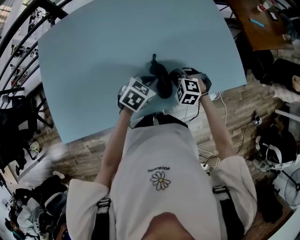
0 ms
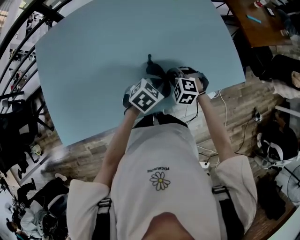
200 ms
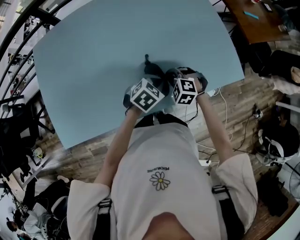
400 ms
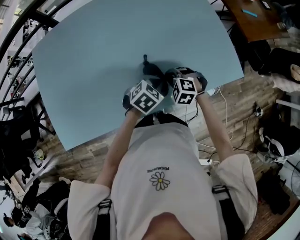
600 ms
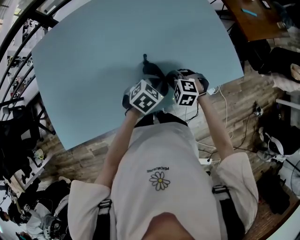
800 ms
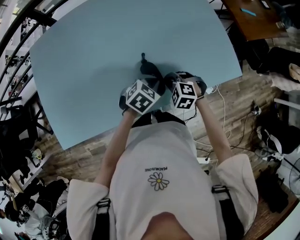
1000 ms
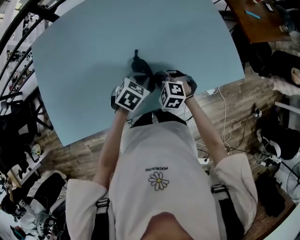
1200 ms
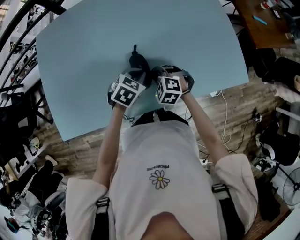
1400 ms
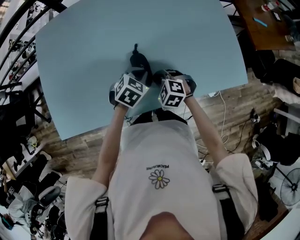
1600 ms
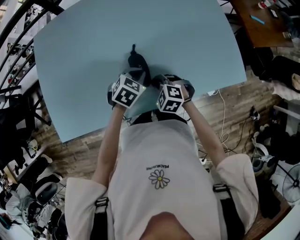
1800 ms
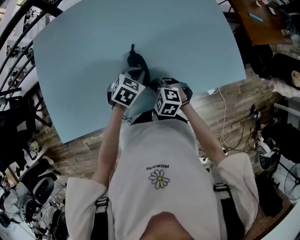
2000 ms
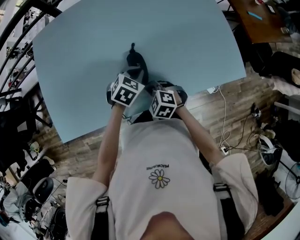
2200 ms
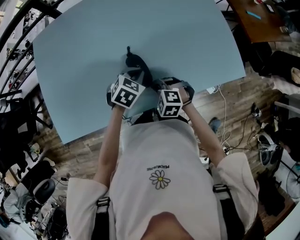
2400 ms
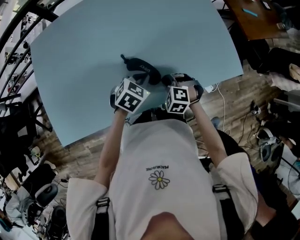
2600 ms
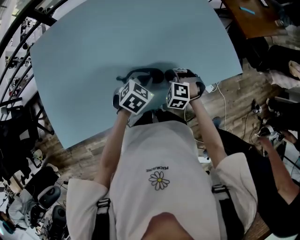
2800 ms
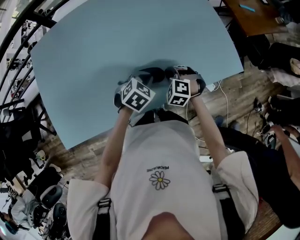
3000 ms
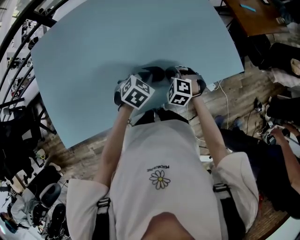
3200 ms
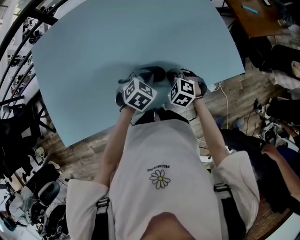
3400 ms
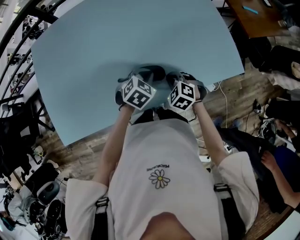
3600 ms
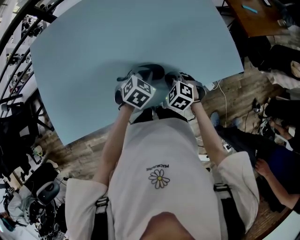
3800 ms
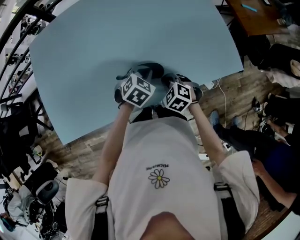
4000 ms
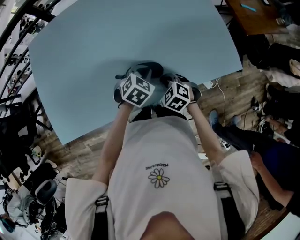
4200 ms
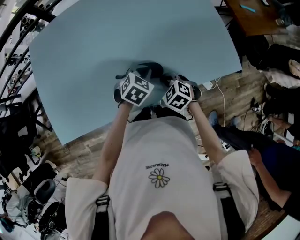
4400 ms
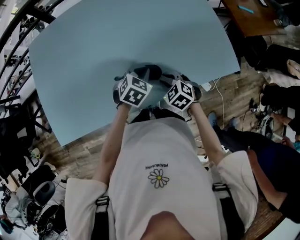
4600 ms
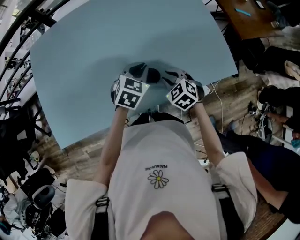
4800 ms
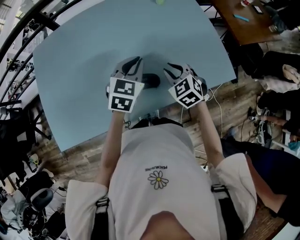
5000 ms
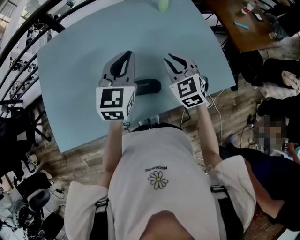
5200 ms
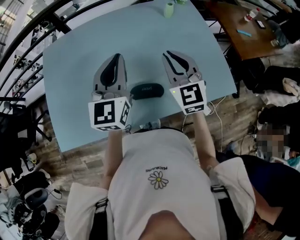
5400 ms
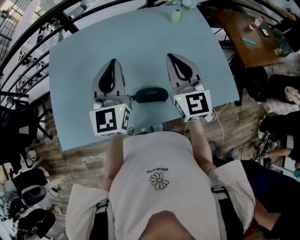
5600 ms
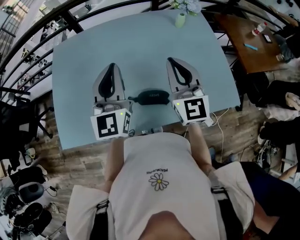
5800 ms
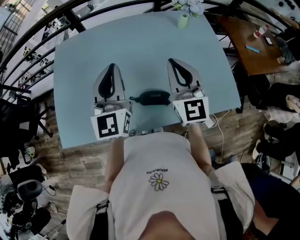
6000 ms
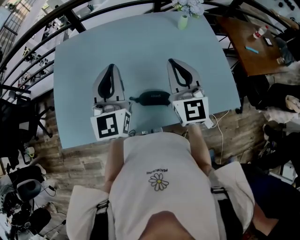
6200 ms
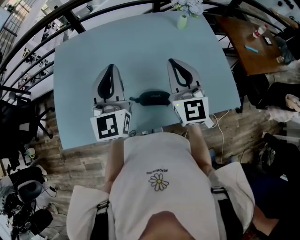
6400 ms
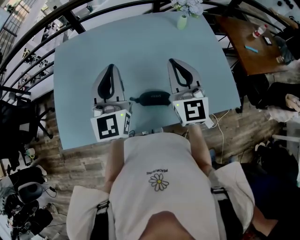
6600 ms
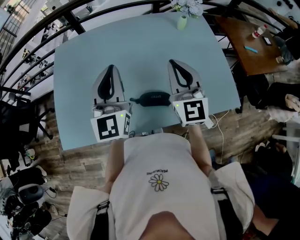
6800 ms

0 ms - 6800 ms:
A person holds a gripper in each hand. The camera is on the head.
0 ms - 1400 ms: The right gripper travels to the left by some 10 cm; the left gripper moves to the left, about 5 cm.
1400 ms - 2800 ms: The right gripper travels to the right by roughly 10 cm, while the left gripper heads to the right, covering about 5 cm.
2800 ms - 4000 ms: The right gripper swivels roughly 20 degrees.
4000 ms - 5400 ms: Both grippers move upward, some 30 cm. The left gripper tilts its fingers roughly 50 degrees upward. Meanwhile the right gripper tips its fingers upward by about 50 degrees.
5400 ms - 6800 ms: The left gripper is displaced to the left by some 5 cm. The right gripper shifts by about 5 cm.

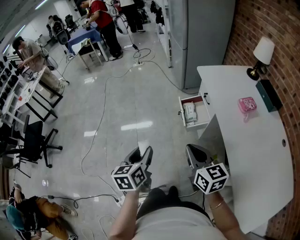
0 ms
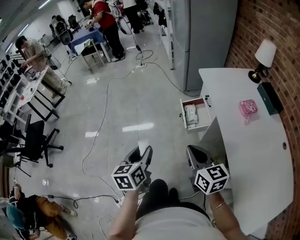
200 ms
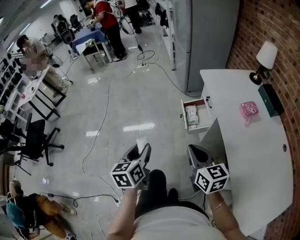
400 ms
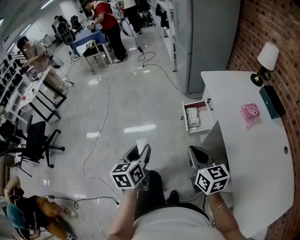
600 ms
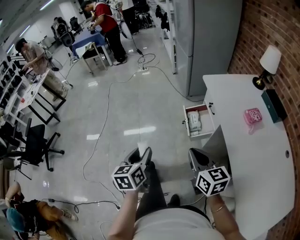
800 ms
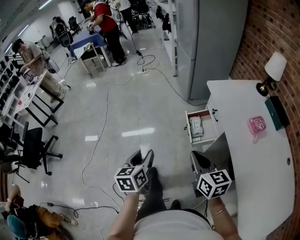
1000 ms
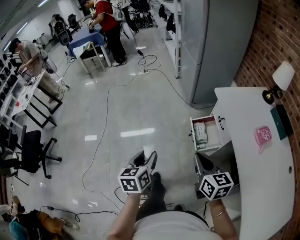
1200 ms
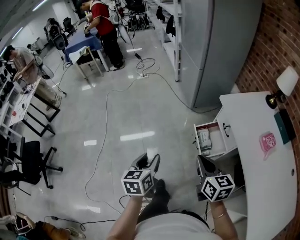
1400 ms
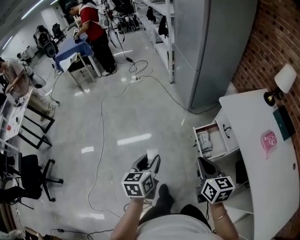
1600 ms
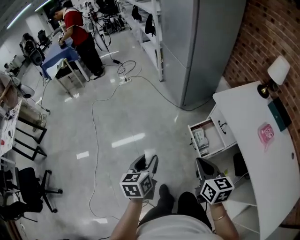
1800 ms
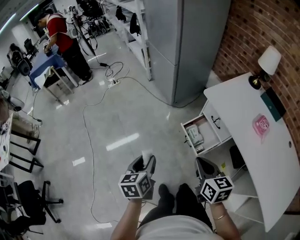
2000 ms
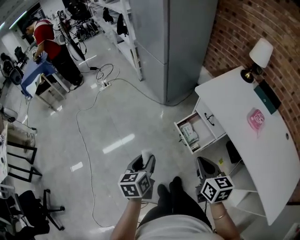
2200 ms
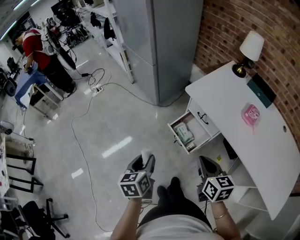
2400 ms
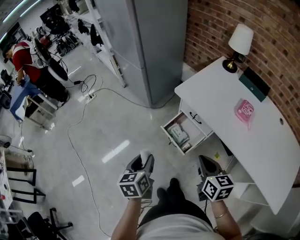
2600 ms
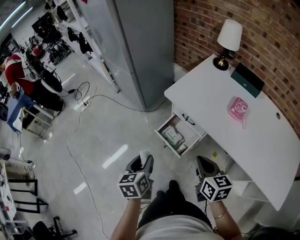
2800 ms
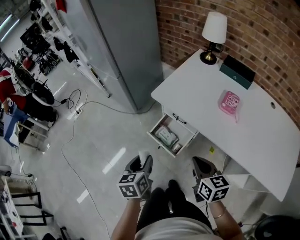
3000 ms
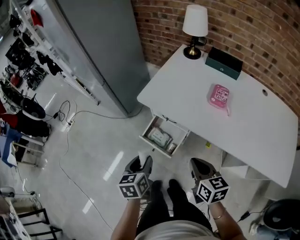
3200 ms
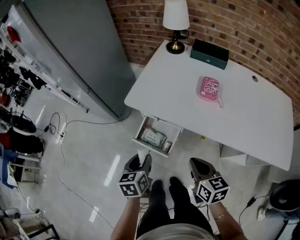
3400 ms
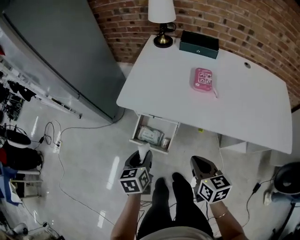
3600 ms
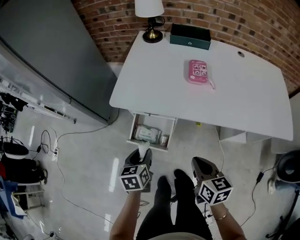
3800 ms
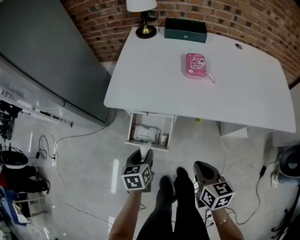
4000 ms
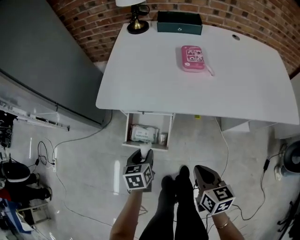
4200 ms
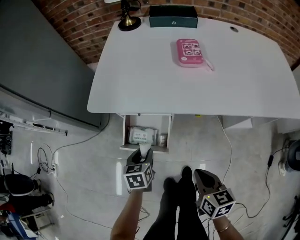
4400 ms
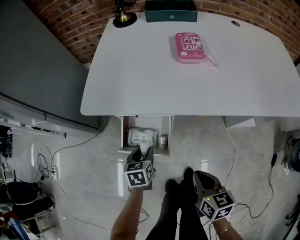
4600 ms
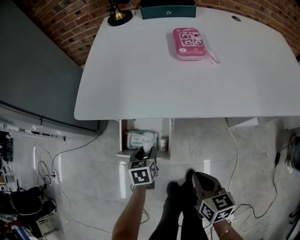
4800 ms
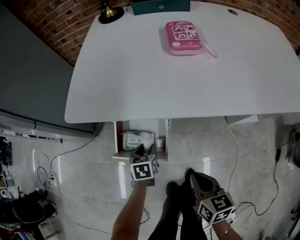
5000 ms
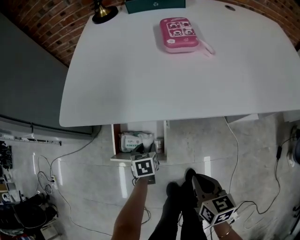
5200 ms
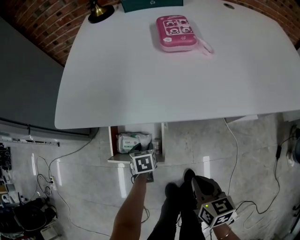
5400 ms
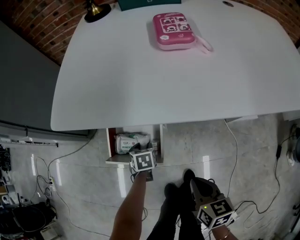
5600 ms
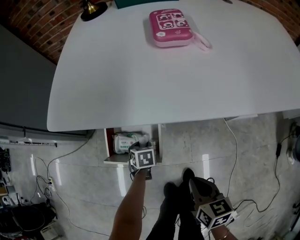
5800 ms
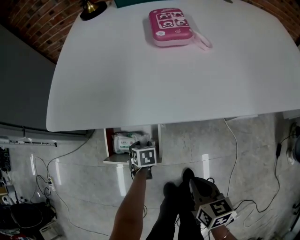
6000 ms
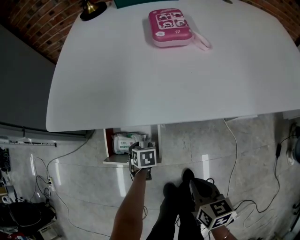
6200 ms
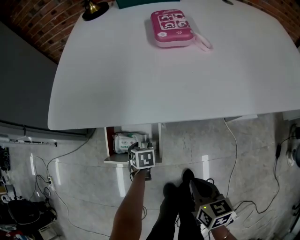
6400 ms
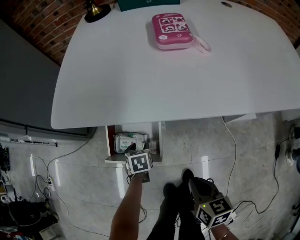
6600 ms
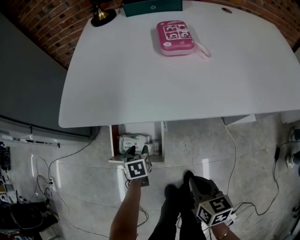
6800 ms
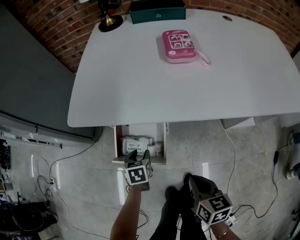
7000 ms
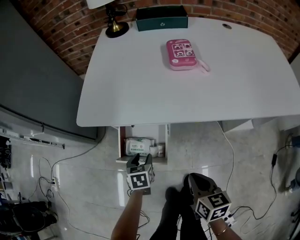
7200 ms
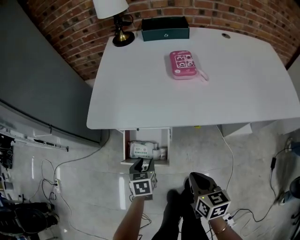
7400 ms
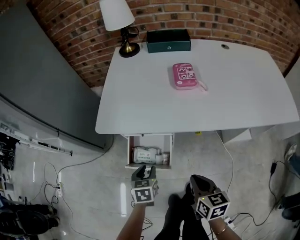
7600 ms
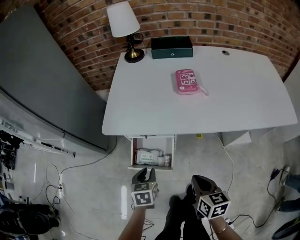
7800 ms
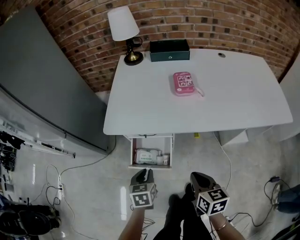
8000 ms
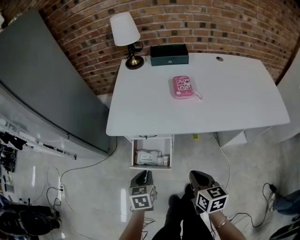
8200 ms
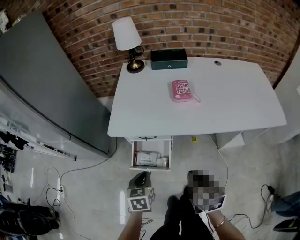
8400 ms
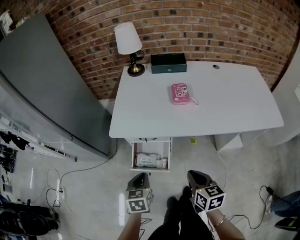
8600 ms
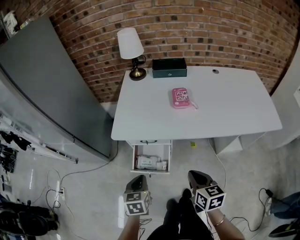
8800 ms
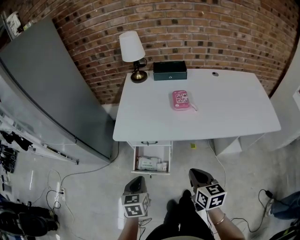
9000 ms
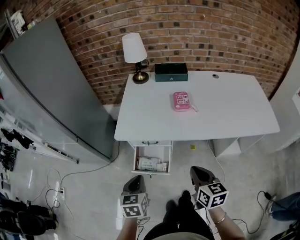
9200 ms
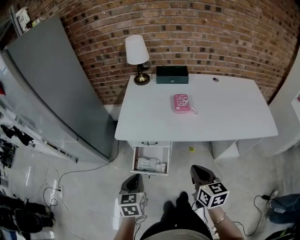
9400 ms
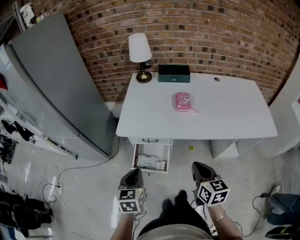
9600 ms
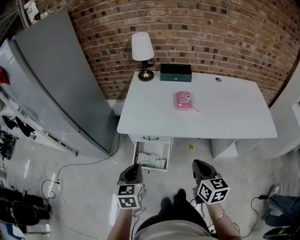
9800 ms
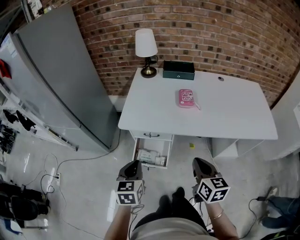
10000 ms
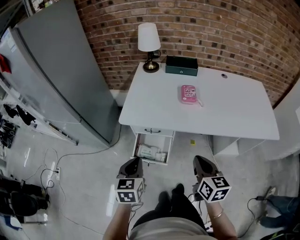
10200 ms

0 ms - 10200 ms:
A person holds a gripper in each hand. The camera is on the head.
0 ms - 1400 ms: Both grippers travel together forward, roughly 30 cm.
1400 ms - 3000 ms: The right gripper changes place by some 20 cm, and swivels approximately 40 degrees. The left gripper changes place by roughly 30 cm, and swivels roughly 30 degrees.
3000 ms - 4400 ms: The grippers both shift downward by some 25 cm. The right gripper changes its angle by approximately 40 degrees. The left gripper rotates approximately 40 degrees.
4400 ms - 5800 ms: The right gripper travels downward by roughly 15 cm. Meanwhile the left gripper is displaced downward by roughly 25 cm, and swivels some 20 degrees.
5800 ms - 7200 ms: The right gripper moves upward, about 10 cm. The left gripper shifts about 15 cm upward.
7200 ms - 8800 ms: The left gripper heads upward and backward, covering some 35 cm, and closes up. Meanwhile the right gripper shifts roughly 25 cm upward.
8800 ms - 10200 ms: The grippers both shift upward by some 10 cm.

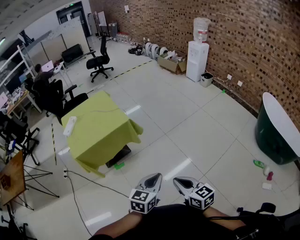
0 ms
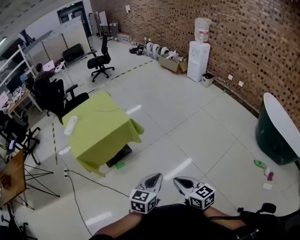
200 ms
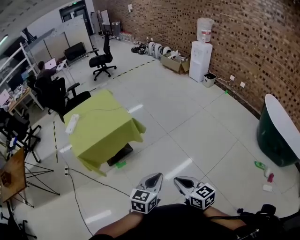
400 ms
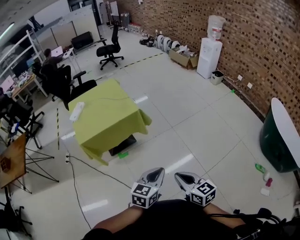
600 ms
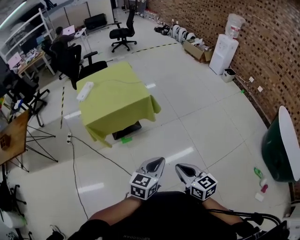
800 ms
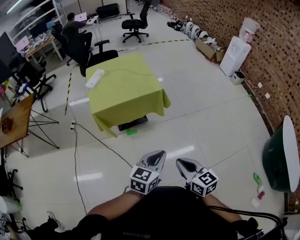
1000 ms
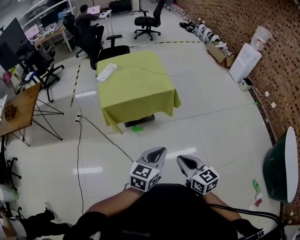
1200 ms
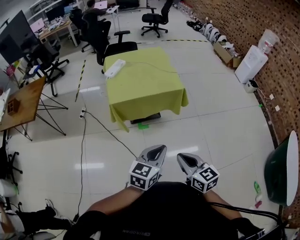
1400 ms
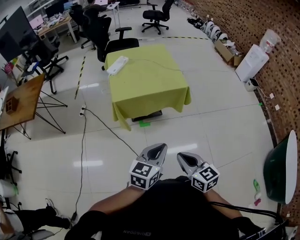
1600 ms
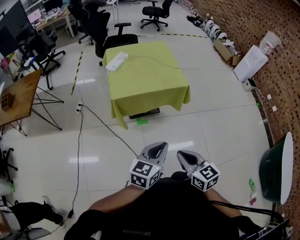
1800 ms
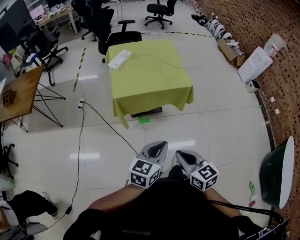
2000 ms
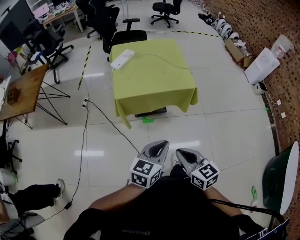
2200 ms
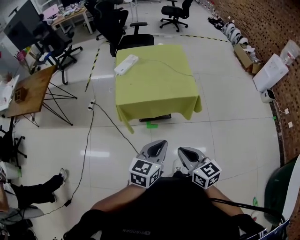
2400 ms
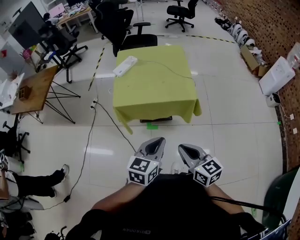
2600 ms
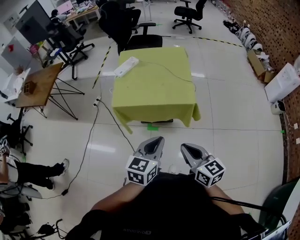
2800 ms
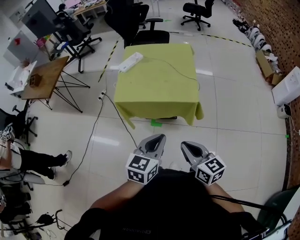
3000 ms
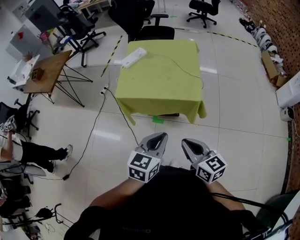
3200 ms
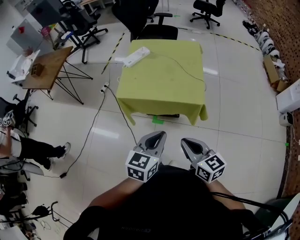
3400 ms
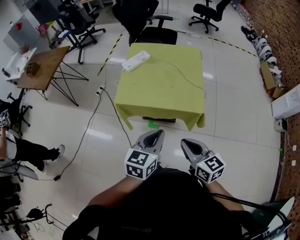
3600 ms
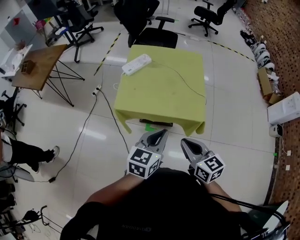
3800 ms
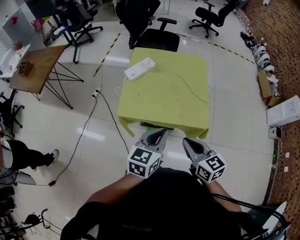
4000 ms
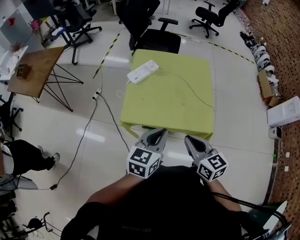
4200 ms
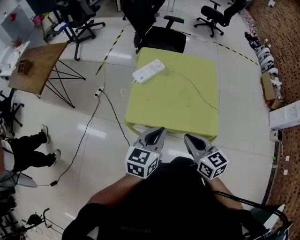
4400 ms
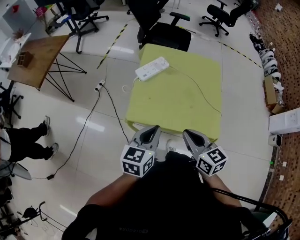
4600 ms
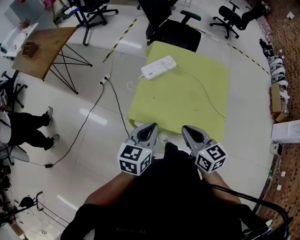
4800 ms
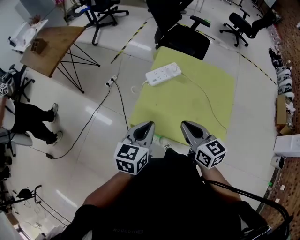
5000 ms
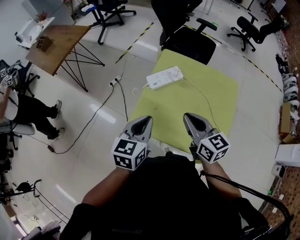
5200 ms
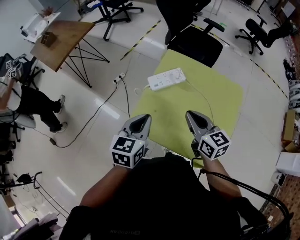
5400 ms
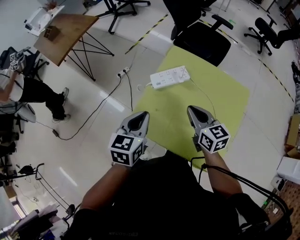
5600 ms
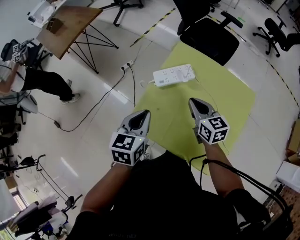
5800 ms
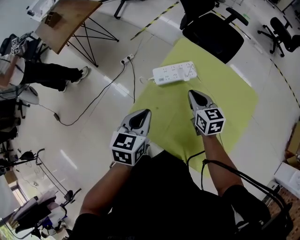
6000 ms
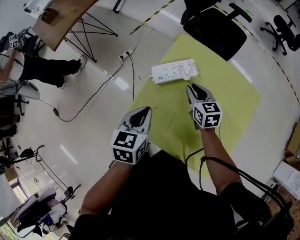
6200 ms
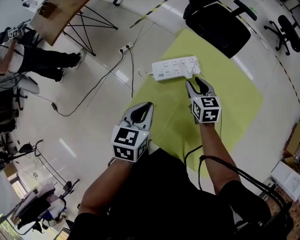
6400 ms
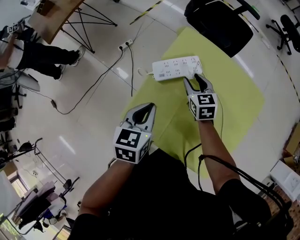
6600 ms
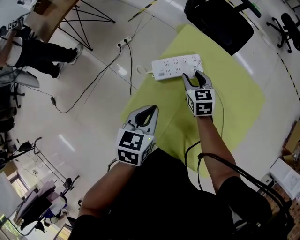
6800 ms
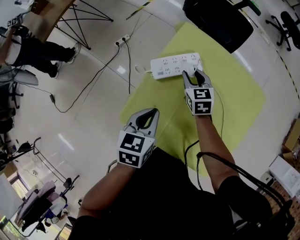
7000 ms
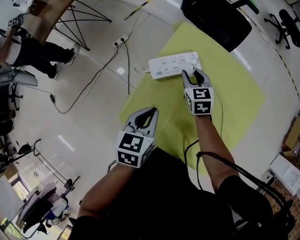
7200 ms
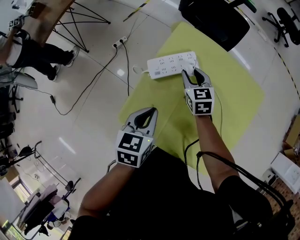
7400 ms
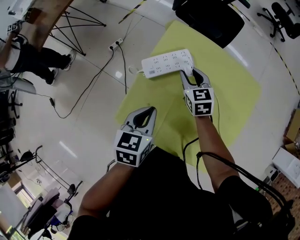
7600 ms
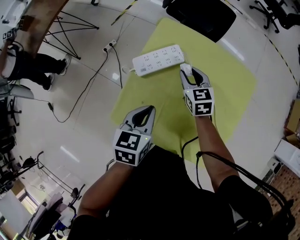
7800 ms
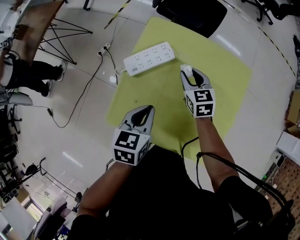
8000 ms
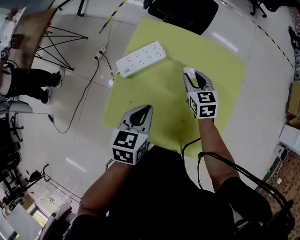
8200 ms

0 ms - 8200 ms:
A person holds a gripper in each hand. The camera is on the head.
0 ms - 1600 ms: The two grippers go some 25 cm to the left. The left gripper swivels approximately 20 degrees. Meanwhile the right gripper changes its angle by approximately 20 degrees.
1600 ms - 3200 ms: The two grippers go roughly 25 cm forward and to the right. The right gripper swivels approximately 20 degrees, while the left gripper turns by approximately 20 degrees.
3200 ms - 5000 ms: The right gripper moves forward, roughly 35 cm. Meanwhile the left gripper moves forward and to the left, some 40 cm, and swivels some 20 degrees.
5000 ms - 6600 ms: The left gripper travels forward and downward by approximately 20 cm, and changes its angle by about 20 degrees. The right gripper shifts about 35 cm forward and downward, rotates roughly 20 degrees, and opens its fingers.
6600 ms - 8200 ms: The grippers both shift to the right by roughly 10 cm.
